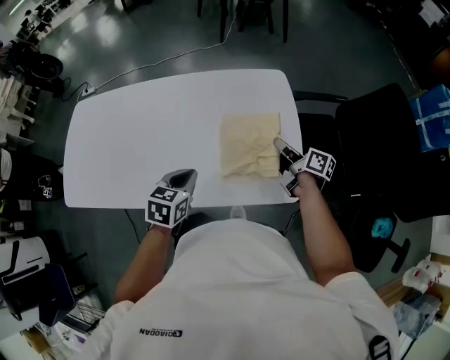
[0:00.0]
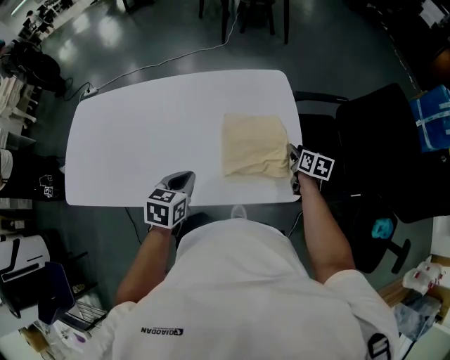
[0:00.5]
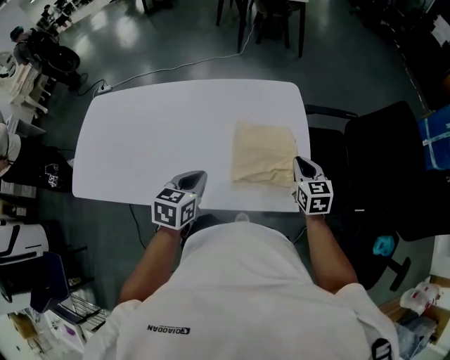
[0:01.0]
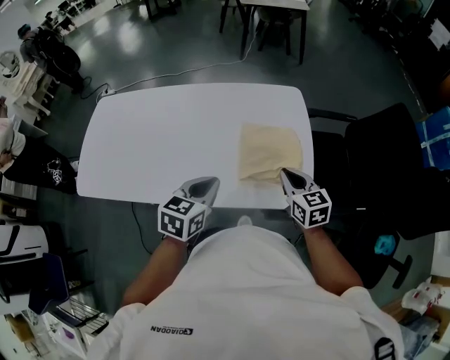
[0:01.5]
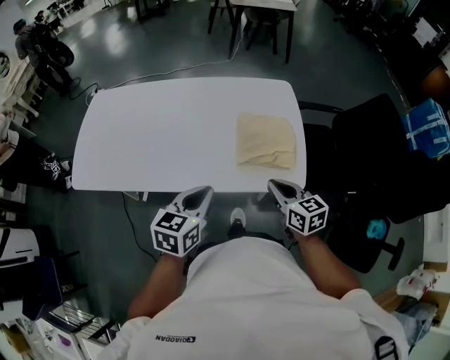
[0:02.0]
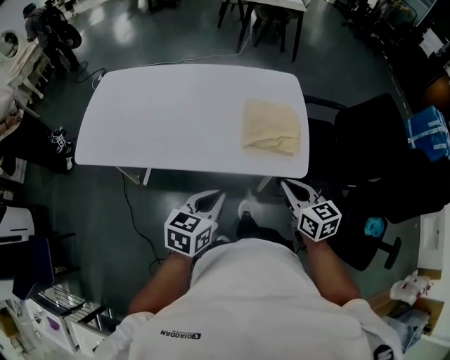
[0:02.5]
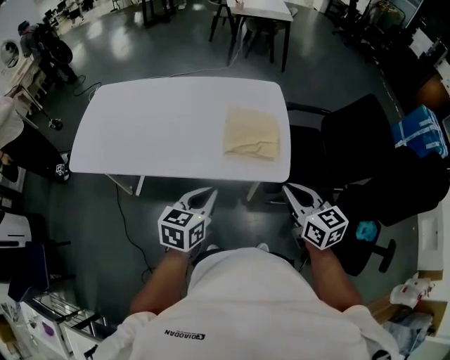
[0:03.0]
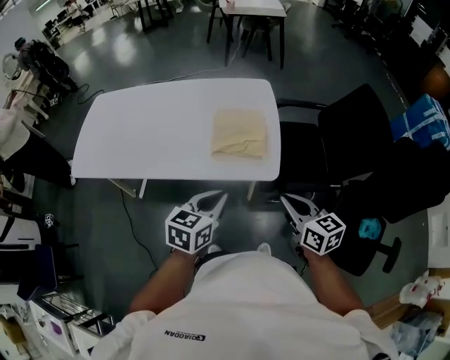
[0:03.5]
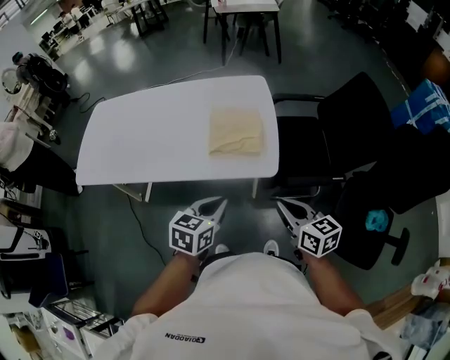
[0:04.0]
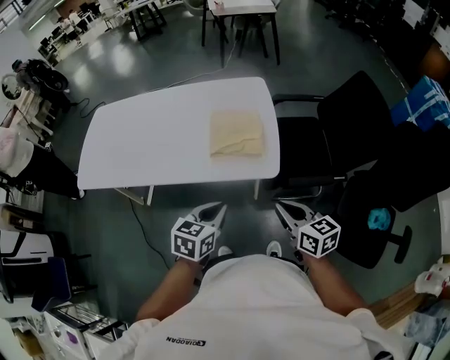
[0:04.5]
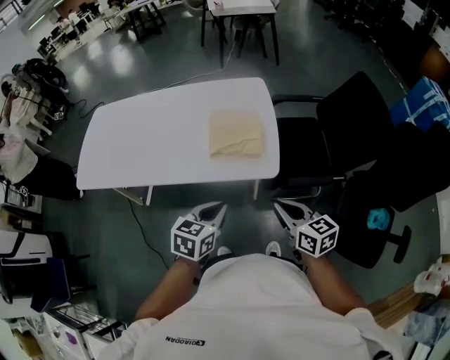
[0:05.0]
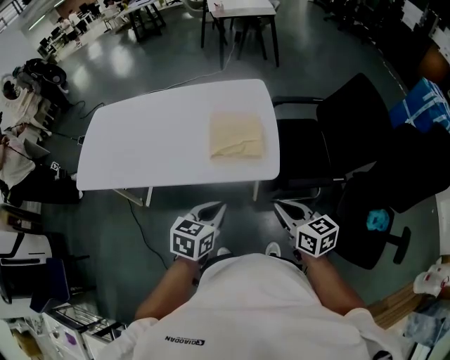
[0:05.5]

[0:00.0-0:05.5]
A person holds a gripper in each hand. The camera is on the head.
0:00.0 to 0:02.0: The right gripper heads backward and to the left, covering about 25 cm, twists roughly 50 degrees counterclockwise, seen from behind, and opens, then closes again. The left gripper travels backward and upward by approximately 20 cm.
0:02.0 to 0:03.5: The grippers both shift to the right and backward by approximately 20 cm.
0:03.5 to 0:05.5: The grippers stay close to where they were, moving slightly.

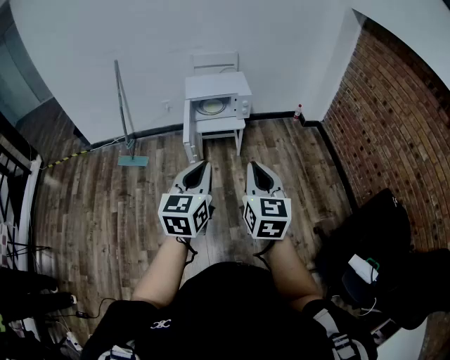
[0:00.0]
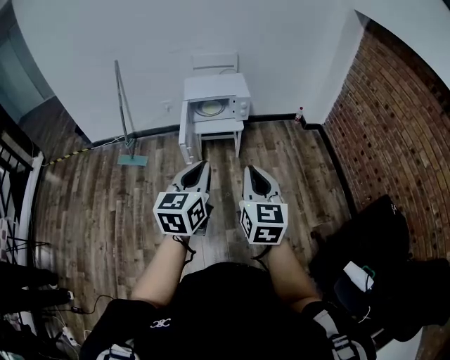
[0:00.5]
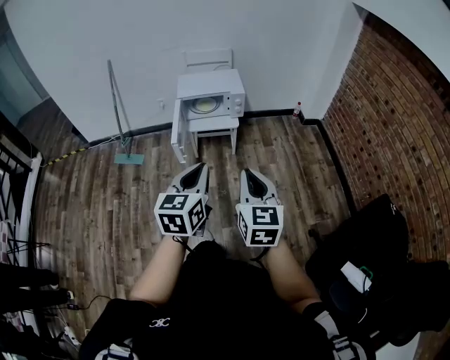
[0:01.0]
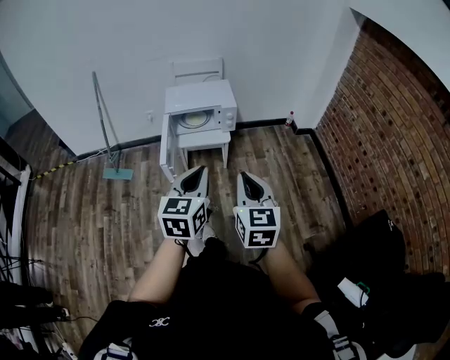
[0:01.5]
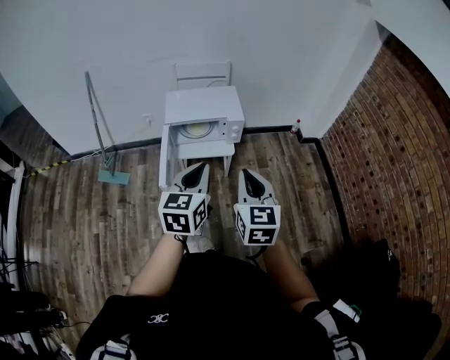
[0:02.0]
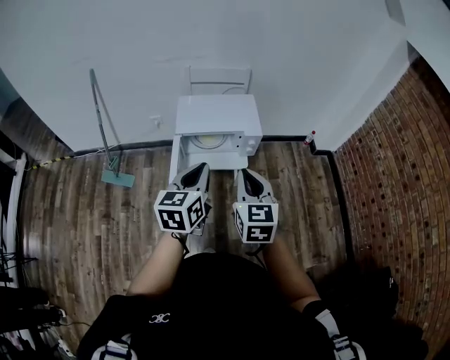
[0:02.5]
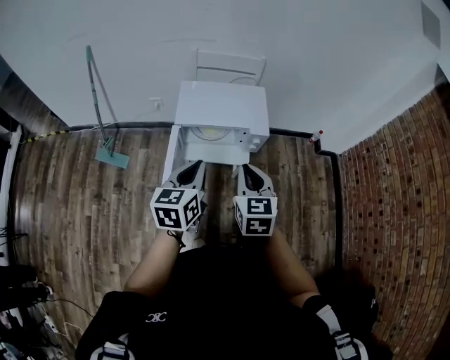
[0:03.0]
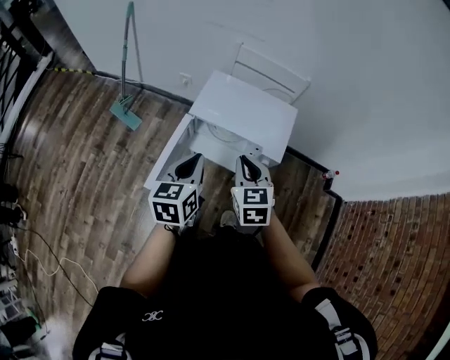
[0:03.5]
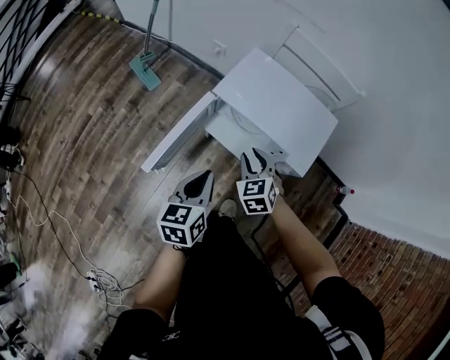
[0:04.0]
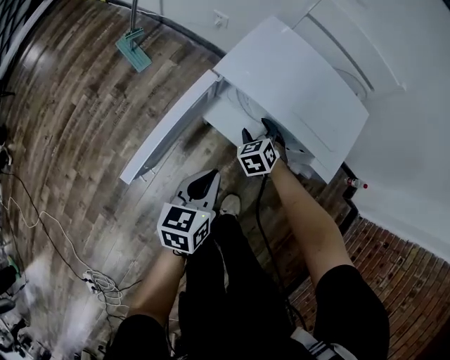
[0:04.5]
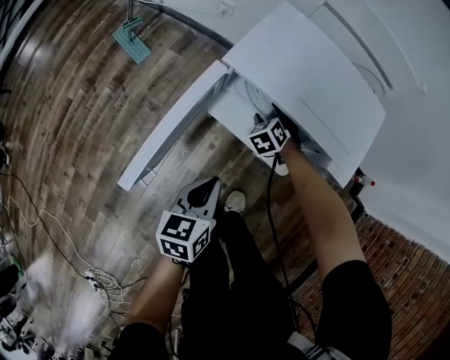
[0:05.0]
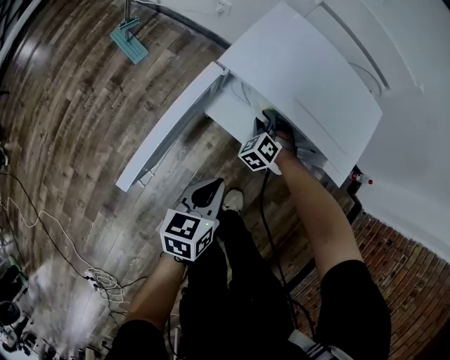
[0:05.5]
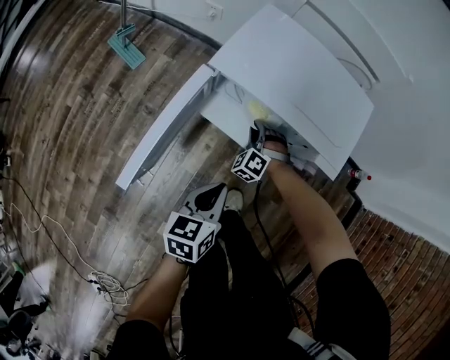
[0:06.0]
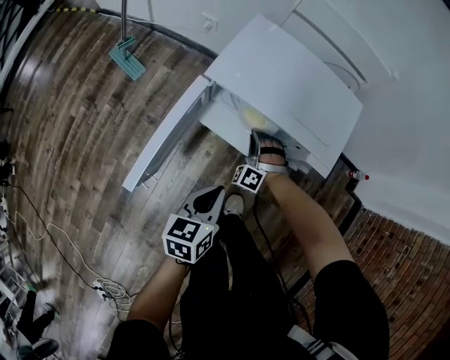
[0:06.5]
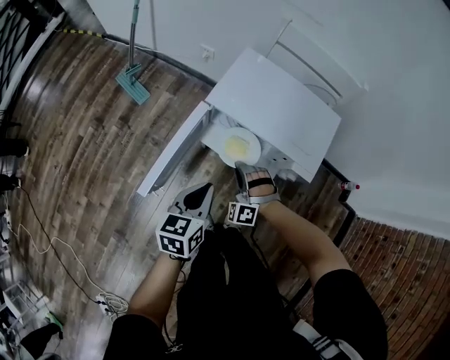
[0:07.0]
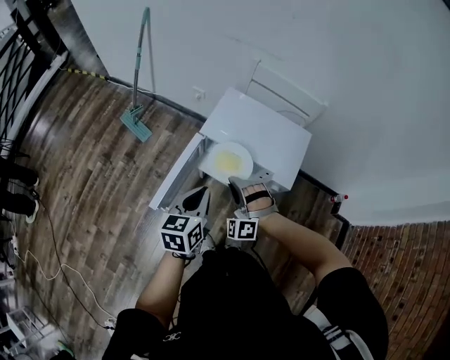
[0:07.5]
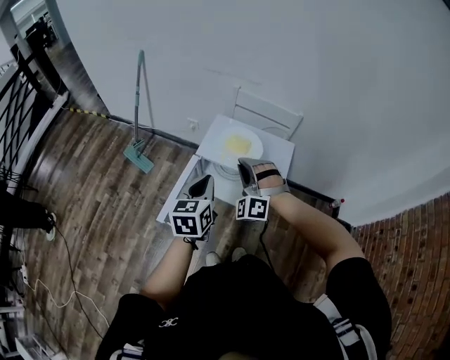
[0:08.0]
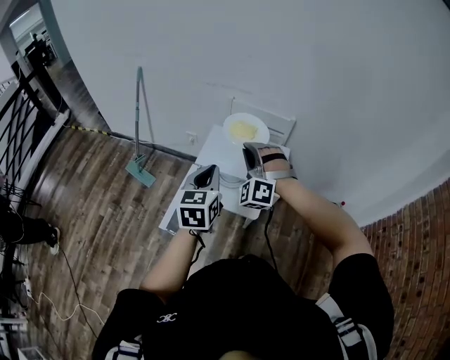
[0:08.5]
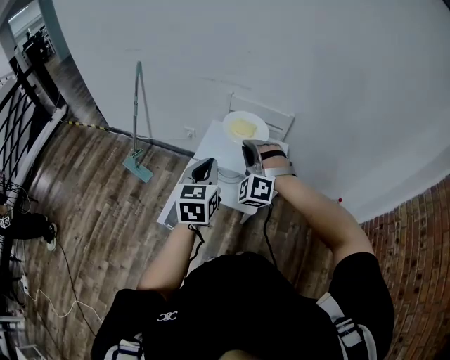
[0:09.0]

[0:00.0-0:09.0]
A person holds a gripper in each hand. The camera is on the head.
0:00.0 to 0:02.0: The grippers both shift forward by approximately 30 cm.
0:02.0 to 0:04.5: The two grippers go some 40 cm downward. The left gripper changes its angle by approximately 40 degrees. Meanwhile the right gripper tips its fingers downward by about 40 degrees, and opens its fingers.
0:04.5 to 0:07.0: The left gripper heads upward, covering roughly 5 cm. Meanwhile the right gripper goes about 15 cm upward and backward, rolls counterclockwise, seen from behind, by roughly 50 degrees, and closes up.
0:07.0 to 0:09.0: Both grippers travel together upward, approximately 35 cm. The left gripper changes its angle by roughly 30 degrees.

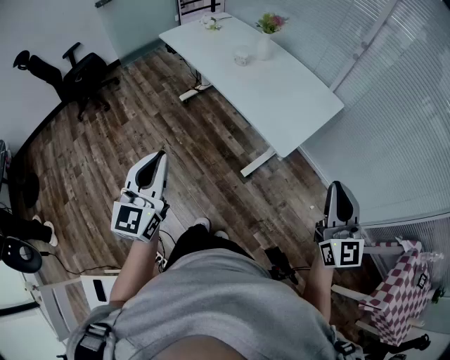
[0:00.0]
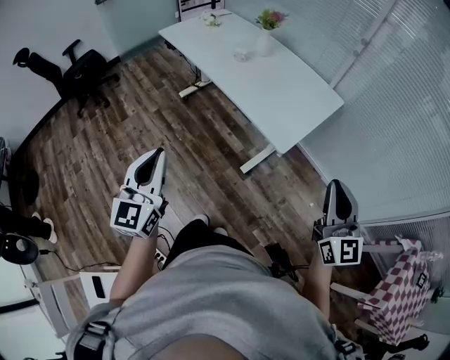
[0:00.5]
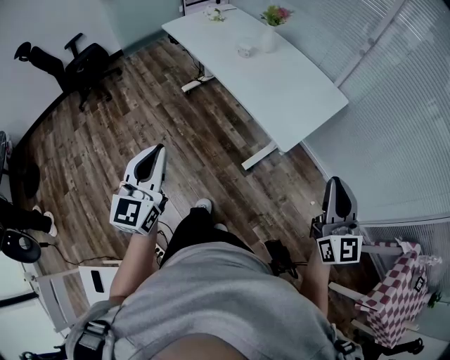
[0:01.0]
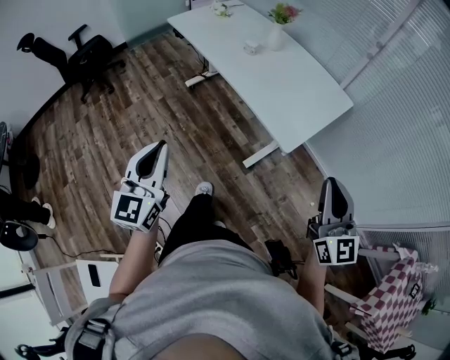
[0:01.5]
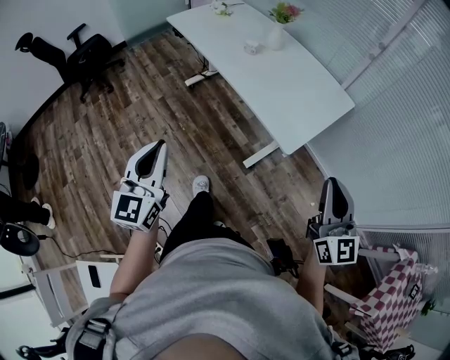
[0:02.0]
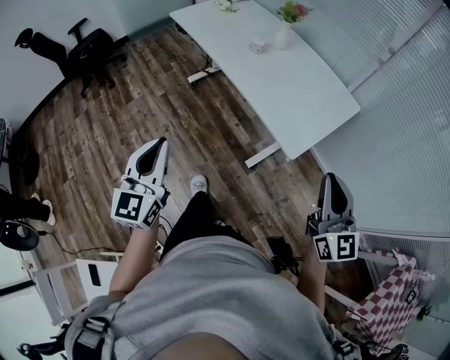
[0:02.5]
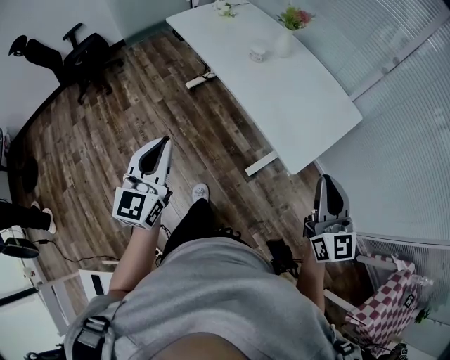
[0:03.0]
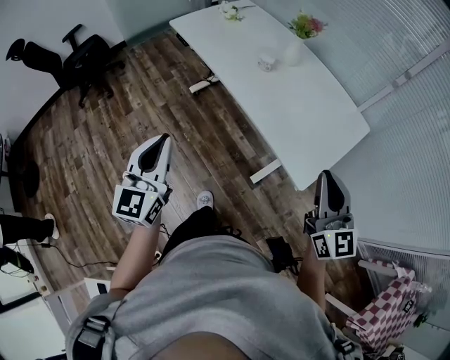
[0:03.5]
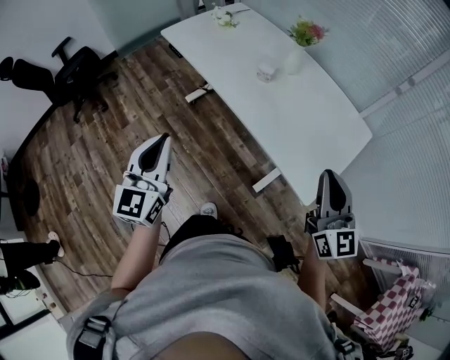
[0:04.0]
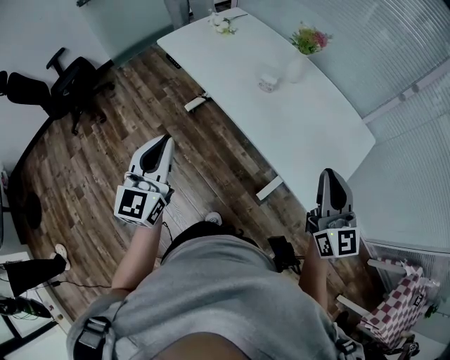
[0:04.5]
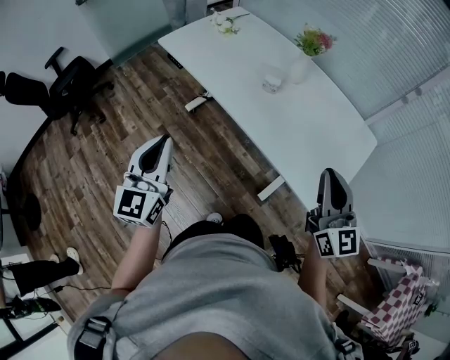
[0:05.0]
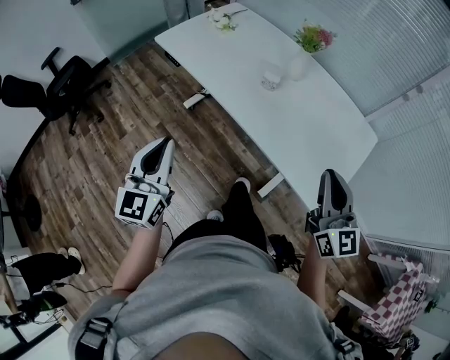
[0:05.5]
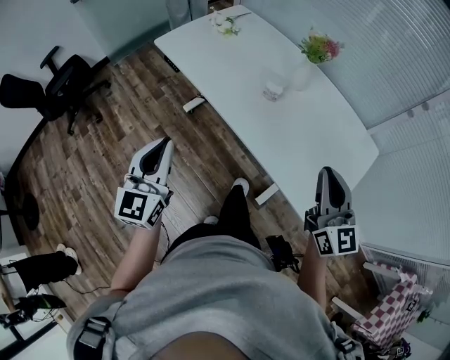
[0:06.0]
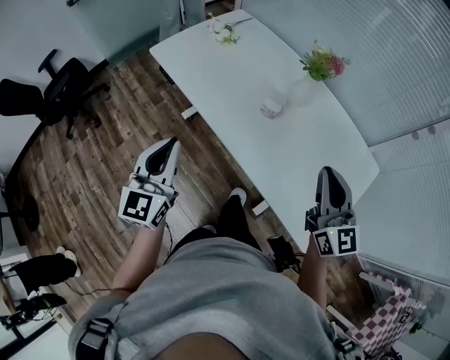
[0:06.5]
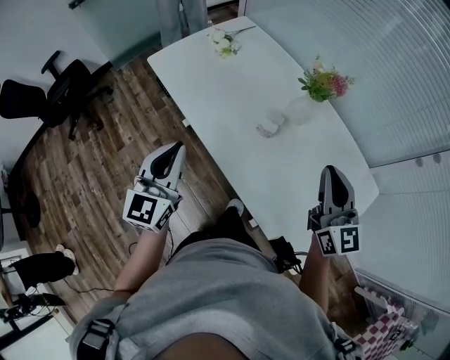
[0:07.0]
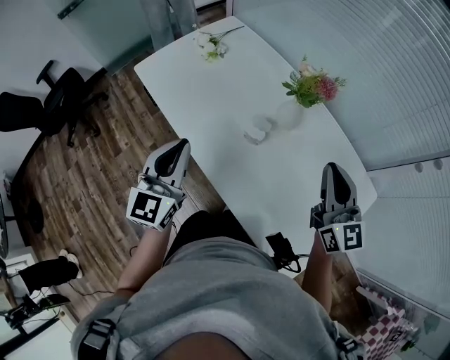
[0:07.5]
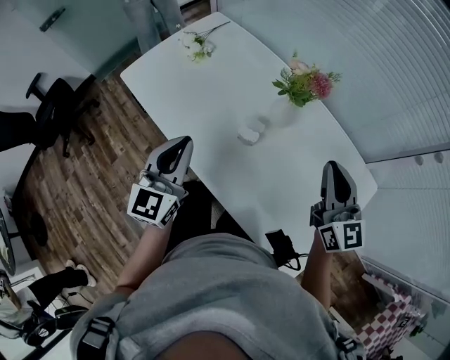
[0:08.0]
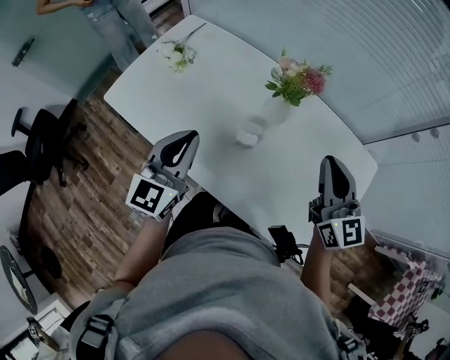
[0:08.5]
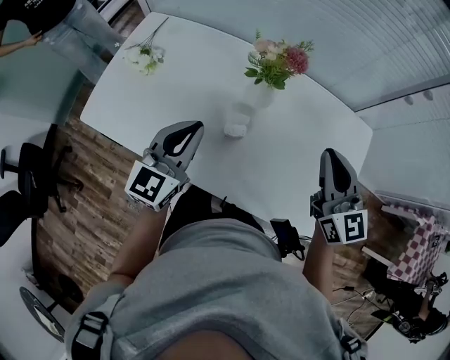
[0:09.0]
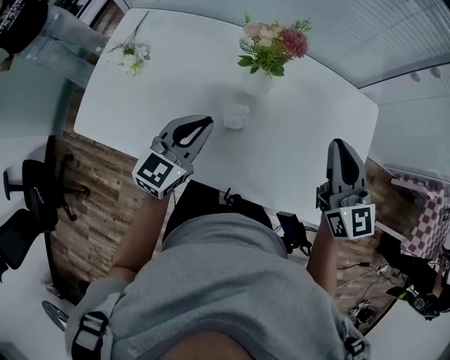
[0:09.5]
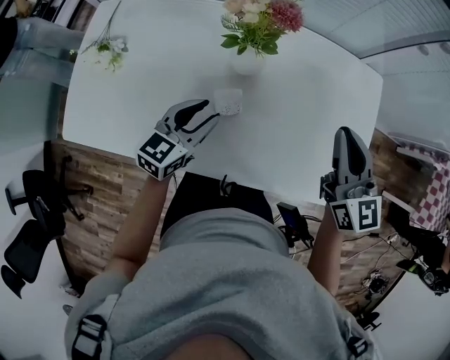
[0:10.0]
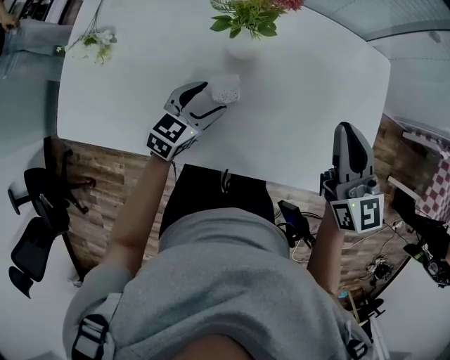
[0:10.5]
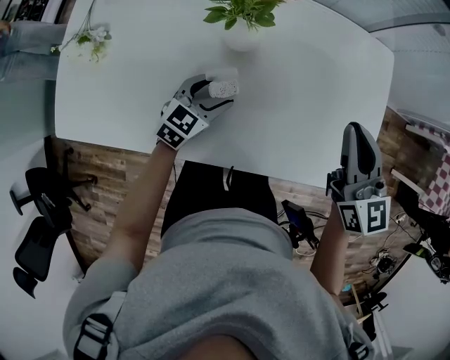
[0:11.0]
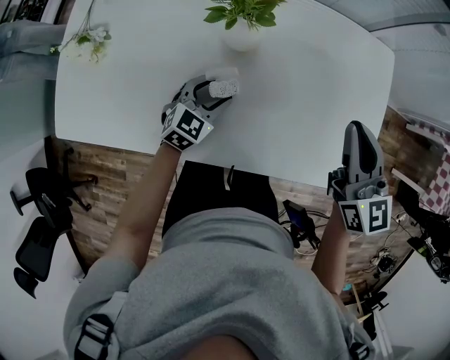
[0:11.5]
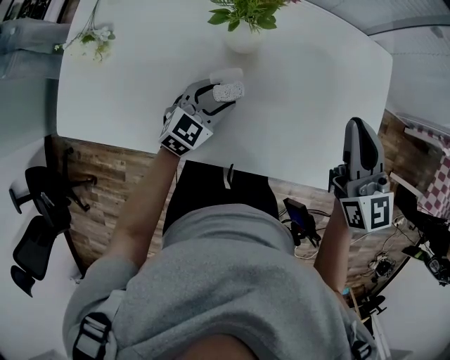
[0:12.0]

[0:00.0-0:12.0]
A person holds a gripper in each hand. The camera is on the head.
0:00.0 to 0:02.0: The grippers move only a little.
0:02.0 to 0:04.0: The left gripper is displaced forward by approximately 25 cm. Meanwhile the right gripper heads forward and to the left, covering approximately 25 cm.
0:04.0 to 0:06.0: The two grippers go about 15 cm forward.
0:06.0 to 0:08.0: Both grippers move forward and to the right, some 30 cm.
0:08.0 to 0:10.0: The left gripper shifts about 15 cm downward, changes its angle by some 60 degrees, and opens up. Meanwhile the right gripper rotates some 30 degrees.
0:10.0 to 0:12.0: The left gripper travels downward by about 10 cm, and changes its angle by some 20 degrees.
